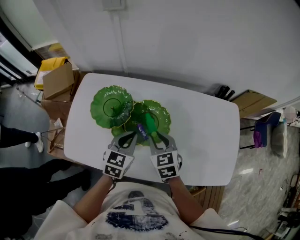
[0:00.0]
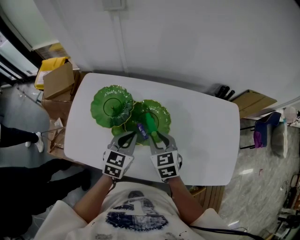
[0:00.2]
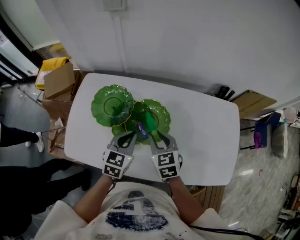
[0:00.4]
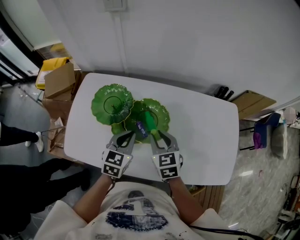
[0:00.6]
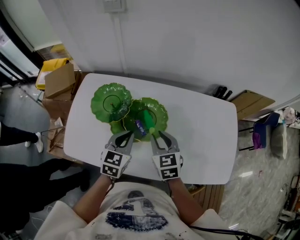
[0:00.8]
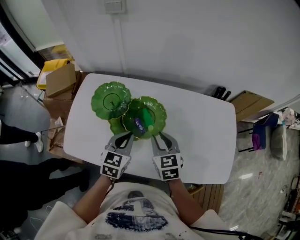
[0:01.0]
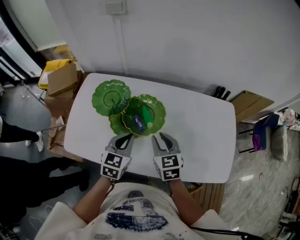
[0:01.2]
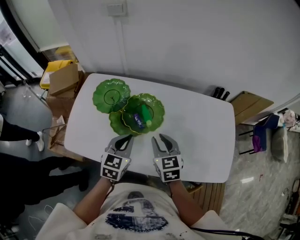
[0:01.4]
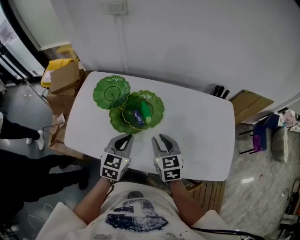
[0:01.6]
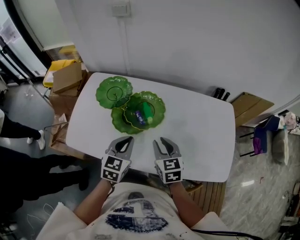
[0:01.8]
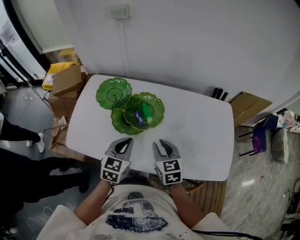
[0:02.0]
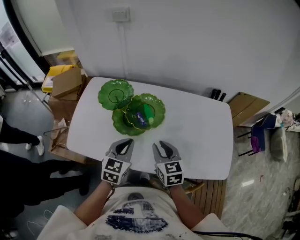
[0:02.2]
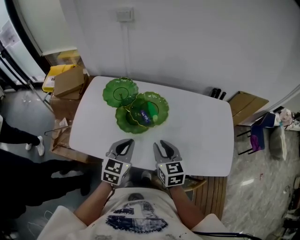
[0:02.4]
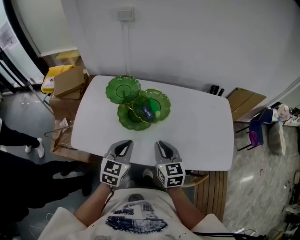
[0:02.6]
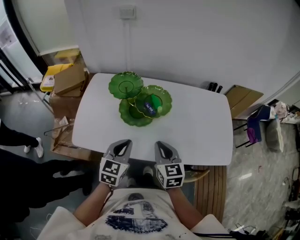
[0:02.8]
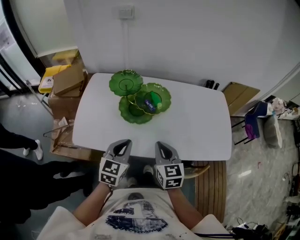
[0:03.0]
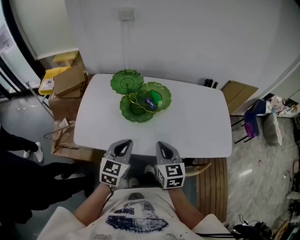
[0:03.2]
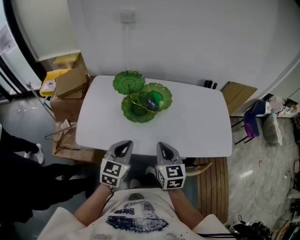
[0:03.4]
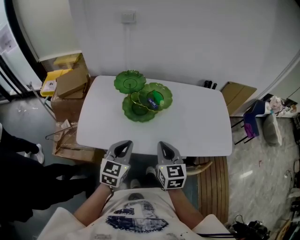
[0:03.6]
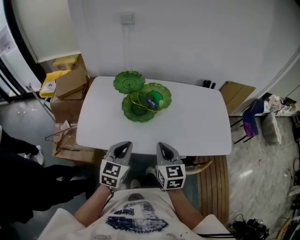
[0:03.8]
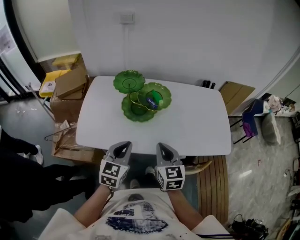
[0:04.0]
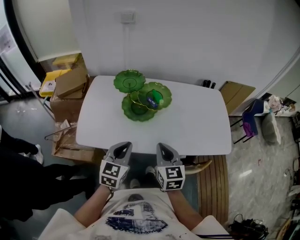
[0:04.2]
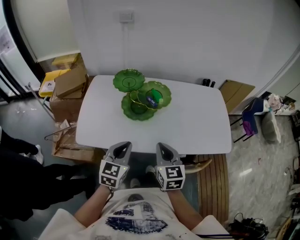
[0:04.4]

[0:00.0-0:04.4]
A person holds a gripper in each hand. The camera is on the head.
0.0 to 1.4 s: Both grippers travel together backward, roughly 5 cm.
1.4 to 3.0 s: The grippers both shift backward and to the left by approximately 15 cm. The right gripper closes up.
3.0 to 4.4 s: The right gripper travels backward by approximately 5 cm. Meanwhile the left gripper moves about 5 cm.

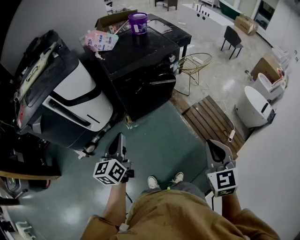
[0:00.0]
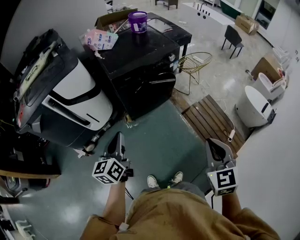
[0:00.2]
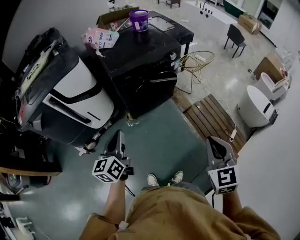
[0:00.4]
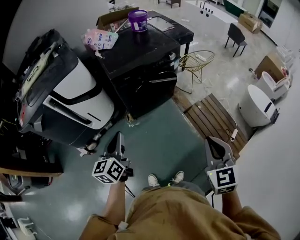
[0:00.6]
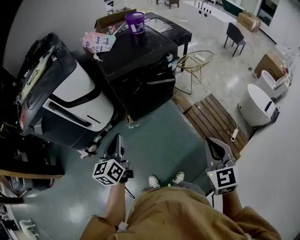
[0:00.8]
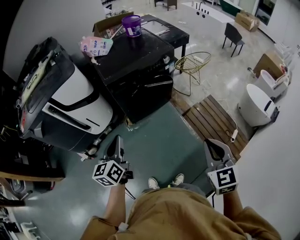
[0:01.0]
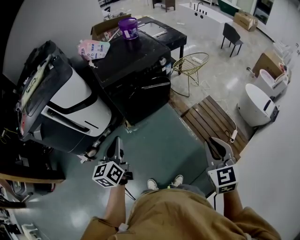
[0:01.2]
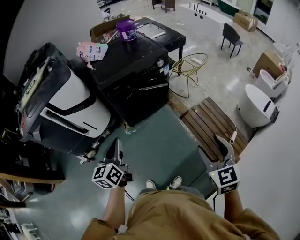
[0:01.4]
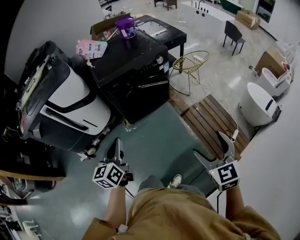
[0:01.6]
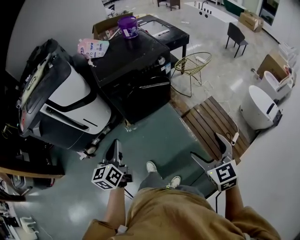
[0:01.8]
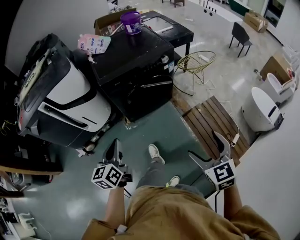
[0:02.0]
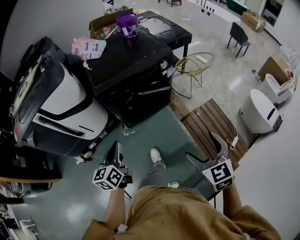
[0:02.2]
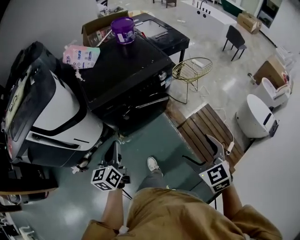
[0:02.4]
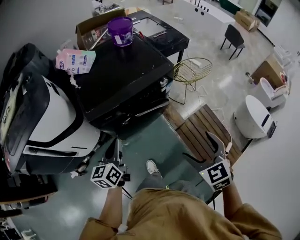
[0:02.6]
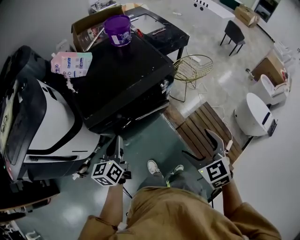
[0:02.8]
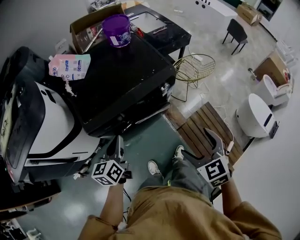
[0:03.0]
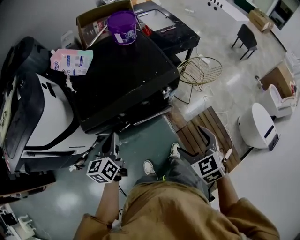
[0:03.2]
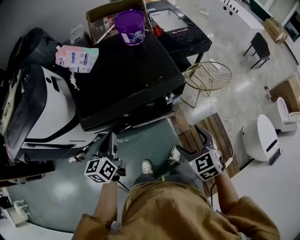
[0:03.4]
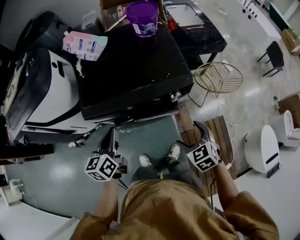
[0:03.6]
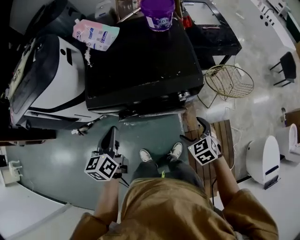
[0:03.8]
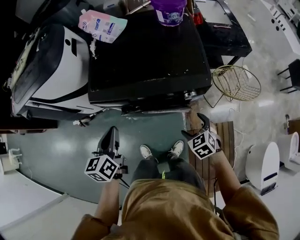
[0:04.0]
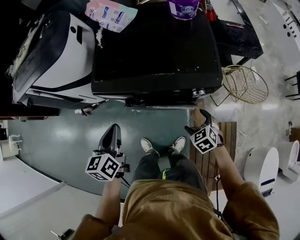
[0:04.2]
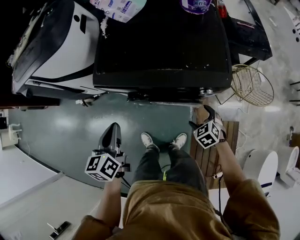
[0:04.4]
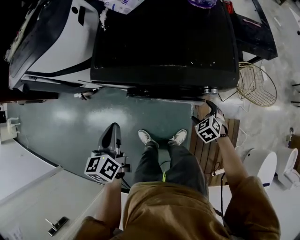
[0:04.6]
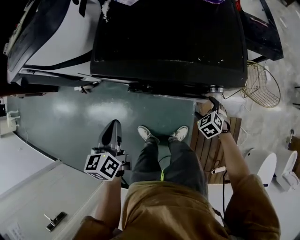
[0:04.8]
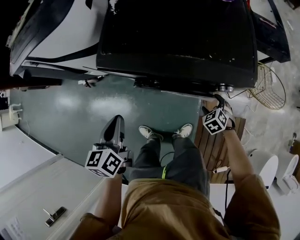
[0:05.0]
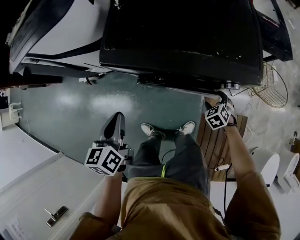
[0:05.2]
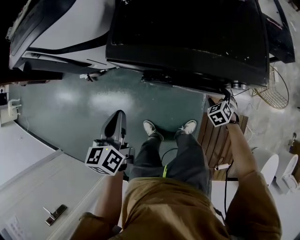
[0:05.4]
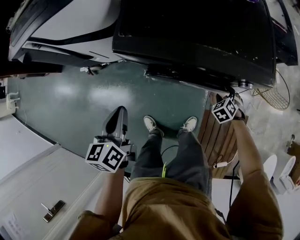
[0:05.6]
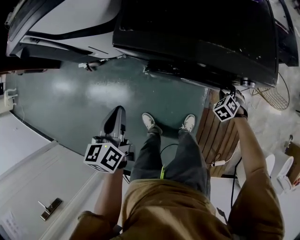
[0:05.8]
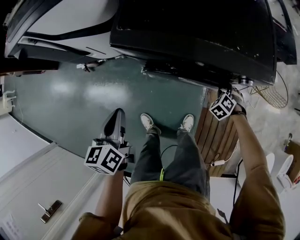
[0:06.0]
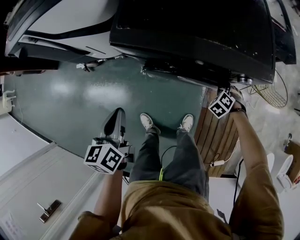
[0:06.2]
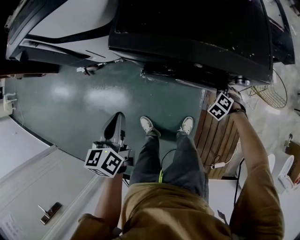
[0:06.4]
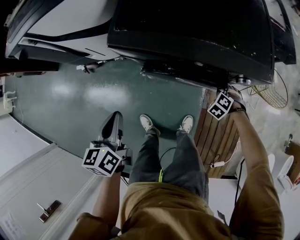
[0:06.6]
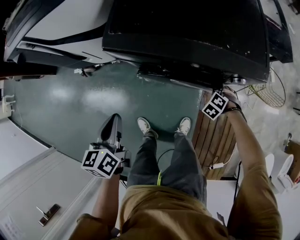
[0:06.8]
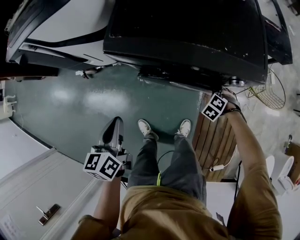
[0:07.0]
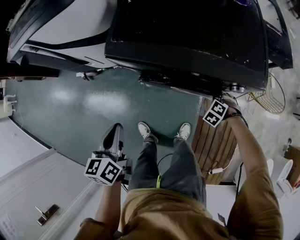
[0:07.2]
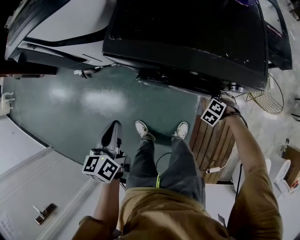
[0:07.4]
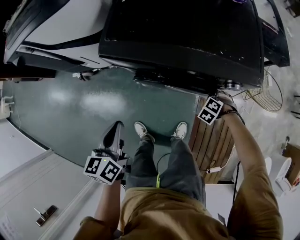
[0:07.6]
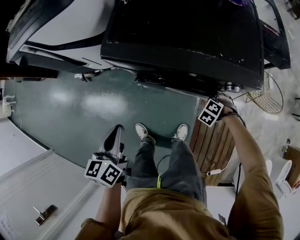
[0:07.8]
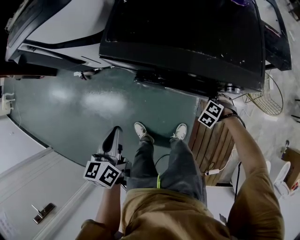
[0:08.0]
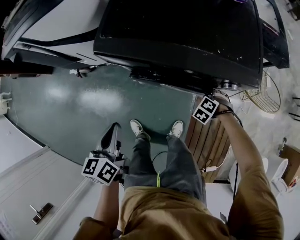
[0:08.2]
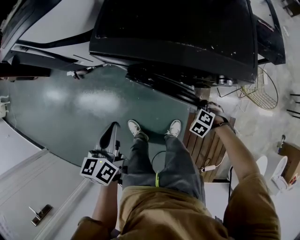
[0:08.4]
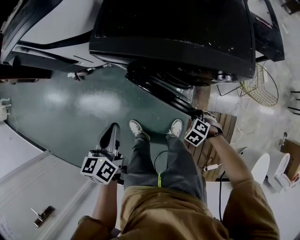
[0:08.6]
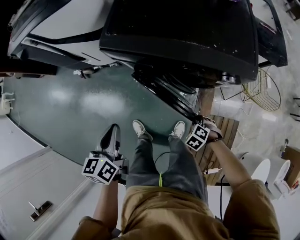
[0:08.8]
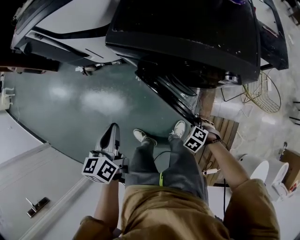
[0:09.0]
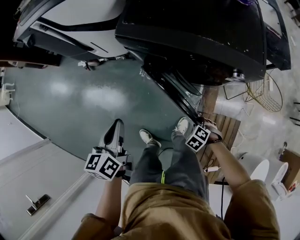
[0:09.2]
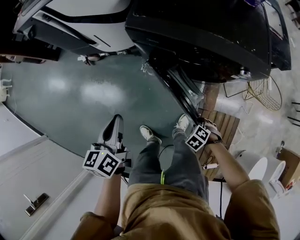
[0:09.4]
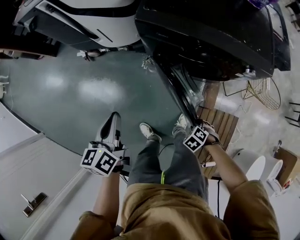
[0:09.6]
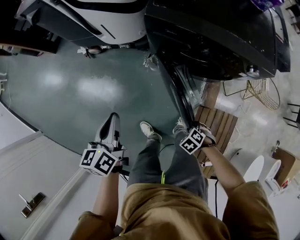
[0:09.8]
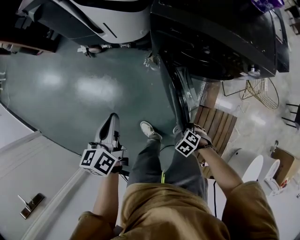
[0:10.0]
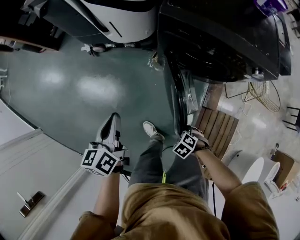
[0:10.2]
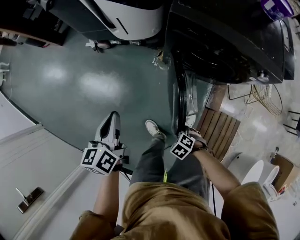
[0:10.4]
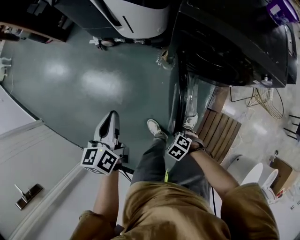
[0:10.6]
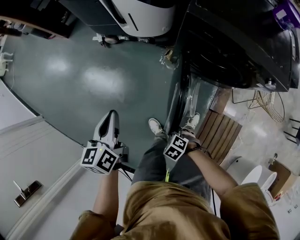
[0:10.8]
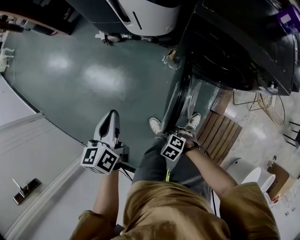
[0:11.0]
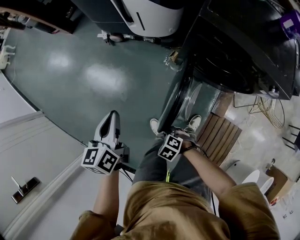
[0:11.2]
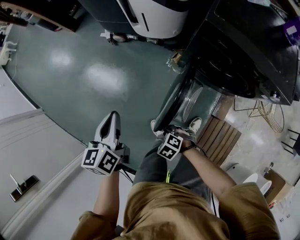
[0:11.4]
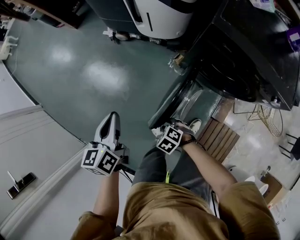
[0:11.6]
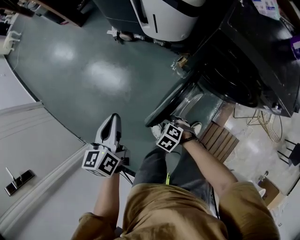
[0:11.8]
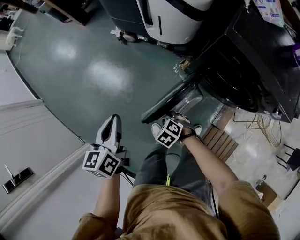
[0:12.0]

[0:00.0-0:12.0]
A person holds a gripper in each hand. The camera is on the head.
0.0 to 1.6 s: Both grippers travel together to the right, about 10 cm. The right gripper opens its fingers.
1.6 to 3.0 s: The grippers both shift forward by some 35 cm.
3.0 to 4.4 s: The right gripper heads downward, covering some 30 cm, and changes its angle by some 50 degrees, while the left gripper swivels some 40 degrees.
4.4 to 6.0 s: The right gripper moves downward and forward, approximately 10 cm, rotates approximately 30 degrees, and closes up; the left gripper travels to the left and downward by approximately 10 cm.
6.0 to 7.6 s: There are only small adjustments of the grippers.
7.6 to 9.0 s: The right gripper ends up roughly 20 cm from where it was. Meanwhile the left gripper moves approximately 5 cm.
9.0 to 10.4 s: The right gripper ends up about 25 cm from where it was. The left gripper ends up about 20 cm from where it was.
10.4 to 12.0 s: The right gripper changes place by some 20 cm. The left gripper ends up approximately 10 cm from where it was.

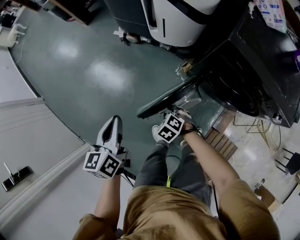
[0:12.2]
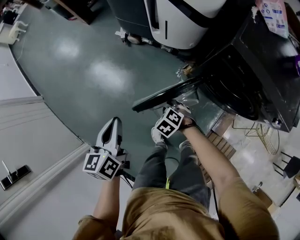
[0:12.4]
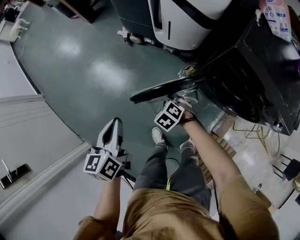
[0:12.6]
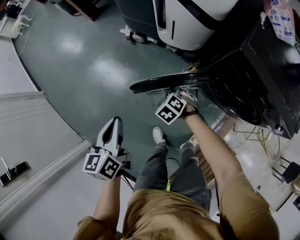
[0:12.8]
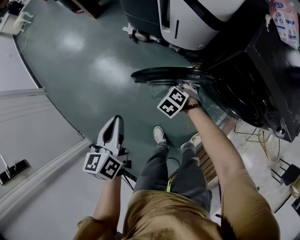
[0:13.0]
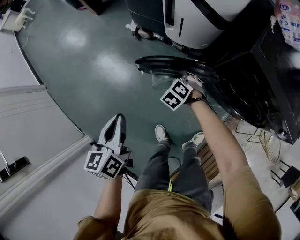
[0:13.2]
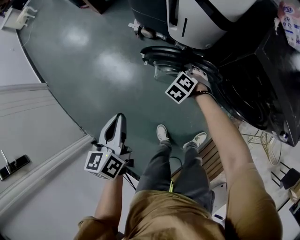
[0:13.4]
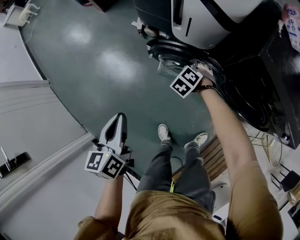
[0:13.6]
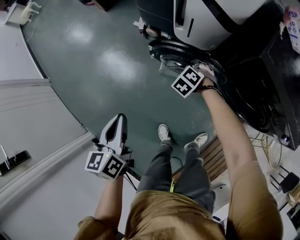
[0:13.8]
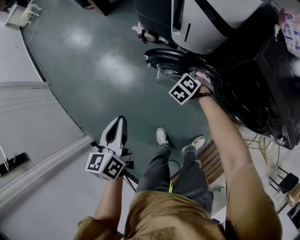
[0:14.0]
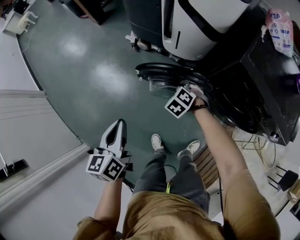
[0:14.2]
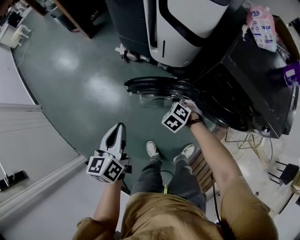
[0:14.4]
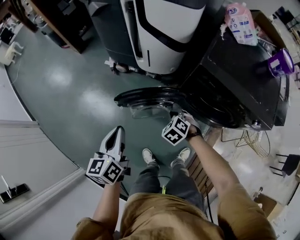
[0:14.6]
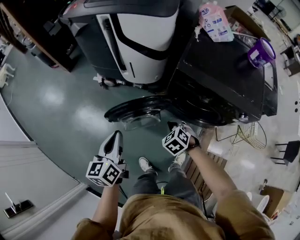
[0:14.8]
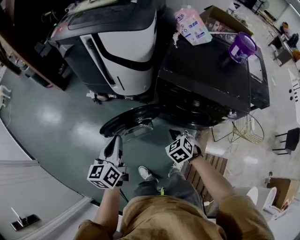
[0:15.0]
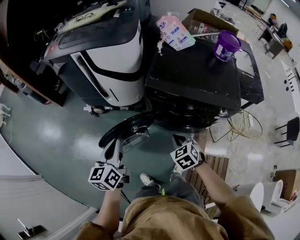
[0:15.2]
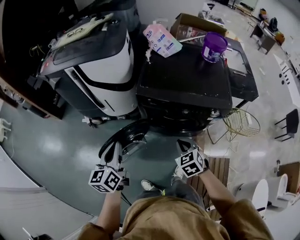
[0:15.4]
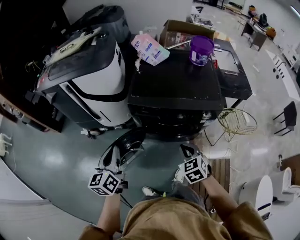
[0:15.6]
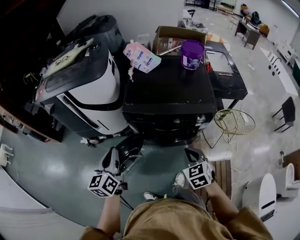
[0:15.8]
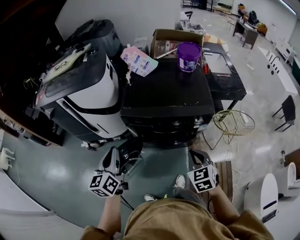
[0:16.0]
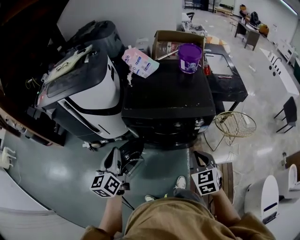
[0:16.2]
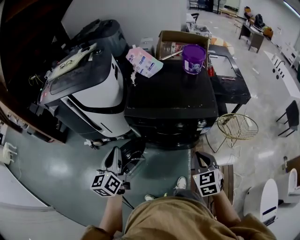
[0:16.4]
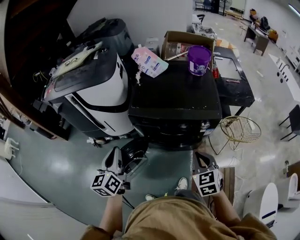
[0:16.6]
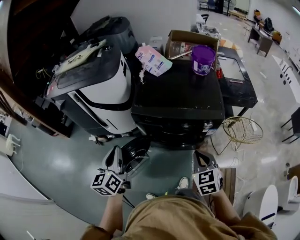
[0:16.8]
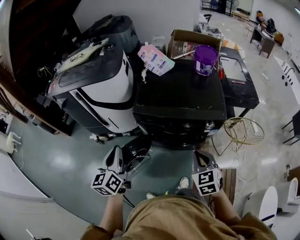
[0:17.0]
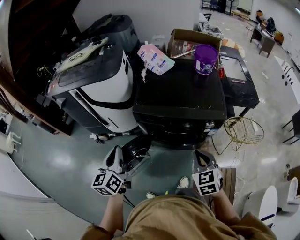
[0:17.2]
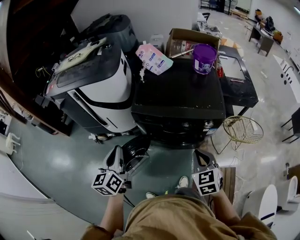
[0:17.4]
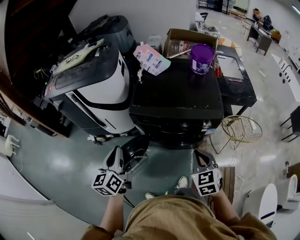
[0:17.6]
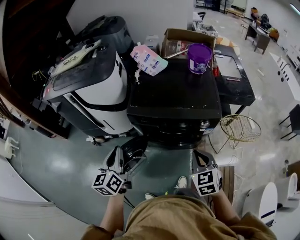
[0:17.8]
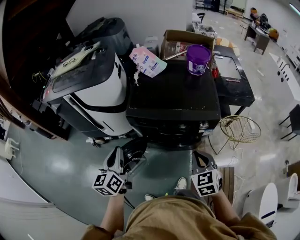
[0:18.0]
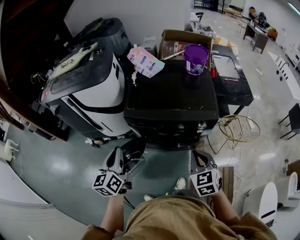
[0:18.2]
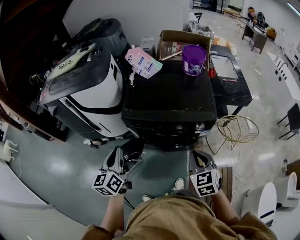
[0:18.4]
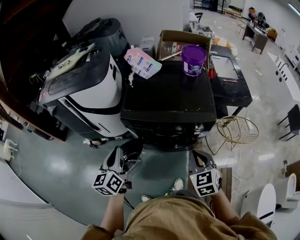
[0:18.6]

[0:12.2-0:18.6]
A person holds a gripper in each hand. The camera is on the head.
12.2 to 13.8 s: The left gripper moves some 5 cm; the right gripper moves some 25 cm, and changes its angle by roughly 20 degrees.
13.8 to 15.4 s: The left gripper shifts roughly 30 cm to the right and upward, and turns by some 30 degrees, while the right gripper goes about 50 cm to the right, upward and backward, and rotates around the line of its fingers by approximately 50 degrees, clockwise from behind.
15.4 to 17.0 s: The right gripper shifts about 15 cm to the right and upward, while the left gripper moves upward, roughly 5 cm.
17.0 to 18.6 s: Both grippers move to the right, some 5 cm.

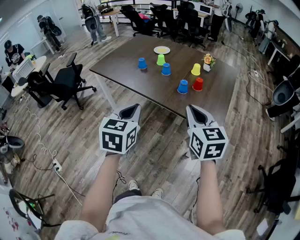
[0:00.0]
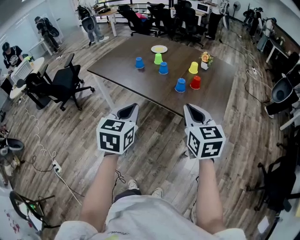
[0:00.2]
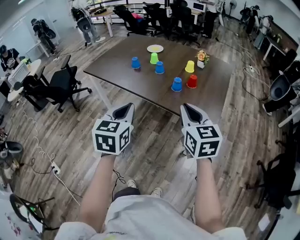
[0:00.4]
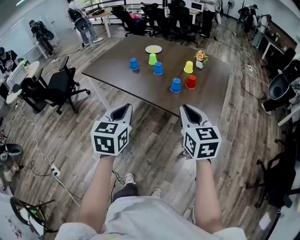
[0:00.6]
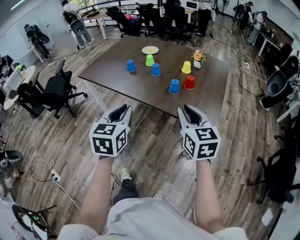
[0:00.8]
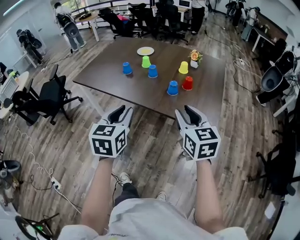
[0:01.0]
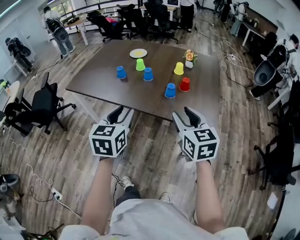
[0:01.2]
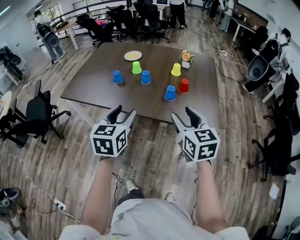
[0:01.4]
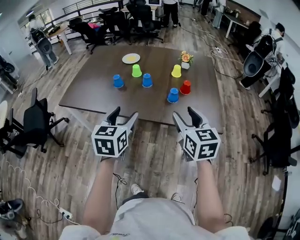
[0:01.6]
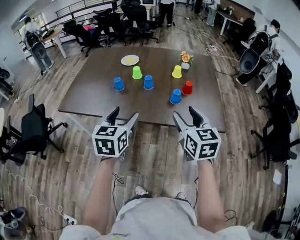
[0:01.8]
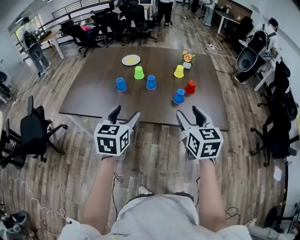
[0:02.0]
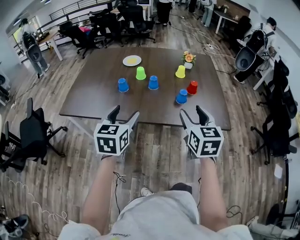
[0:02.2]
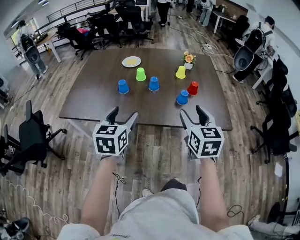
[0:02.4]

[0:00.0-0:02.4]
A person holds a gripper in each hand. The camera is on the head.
0.0 to 1.2 s: The left gripper heads forward, covering about 10 cm, and opens up, while the right gripper goes roughly 5 cm forward, and opens up.
1.2 to 2.4 s: The left gripper is displaced to the left and forward by approximately 20 cm, and opens up; the right gripper goes roughly 15 cm to the left and forward, and rotates roughly 20 degrees.
